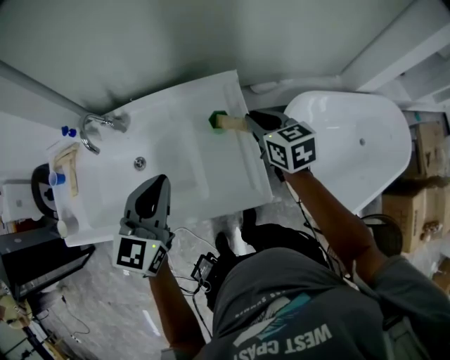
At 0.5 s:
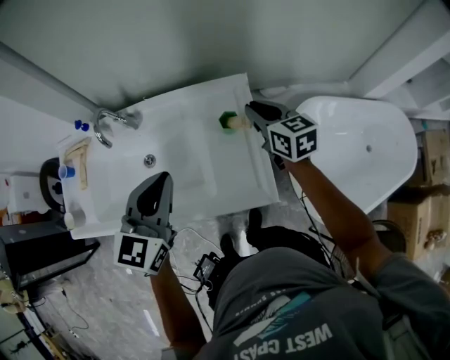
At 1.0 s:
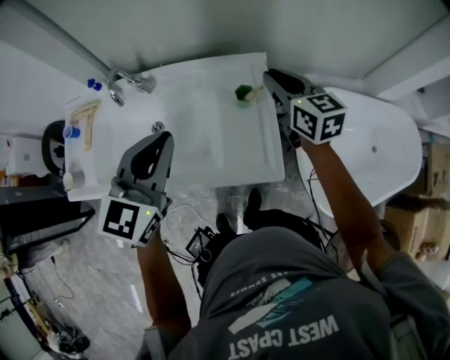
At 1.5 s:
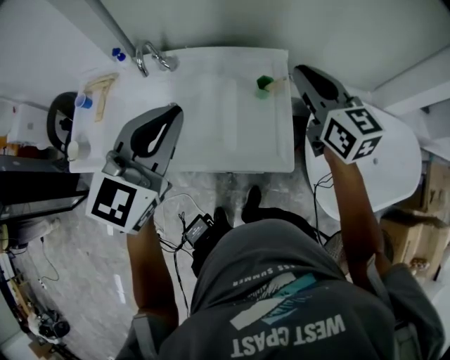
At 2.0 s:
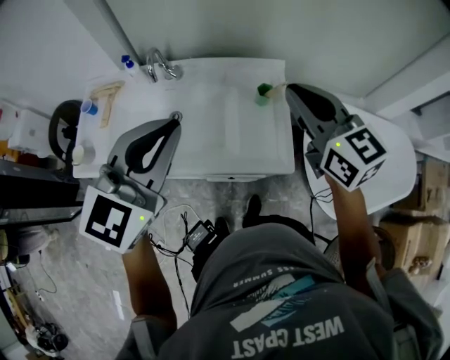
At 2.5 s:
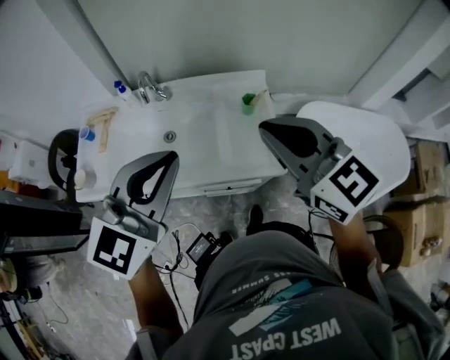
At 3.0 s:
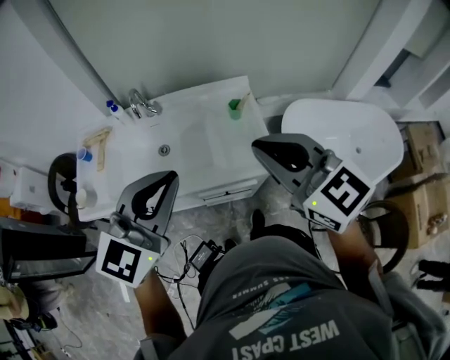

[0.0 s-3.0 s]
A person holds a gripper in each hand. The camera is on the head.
0.0 to 1.5 s: The left gripper shifts some 10 cm upward and backward. Meanwhile the right gripper goes some 15 cm upward, and turns by approximately 20 degrees.
1.5 to 3.0 s: The left gripper goes about 15 cm backward; the right gripper shifts about 25 cm backward.

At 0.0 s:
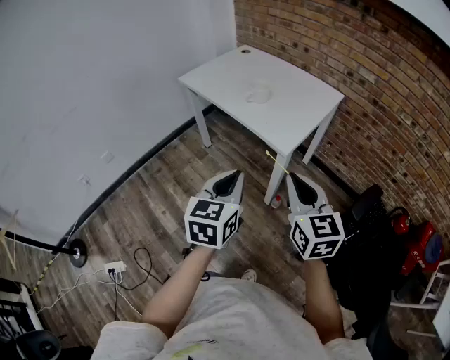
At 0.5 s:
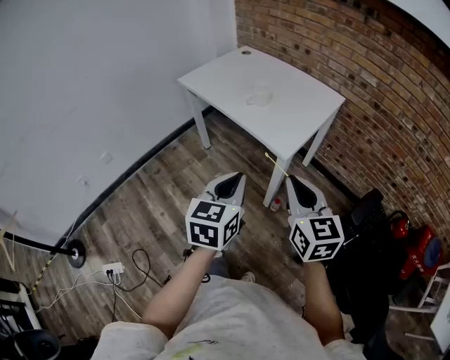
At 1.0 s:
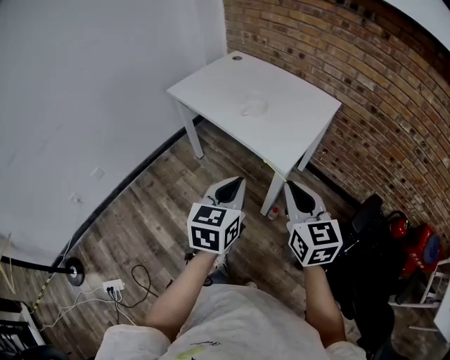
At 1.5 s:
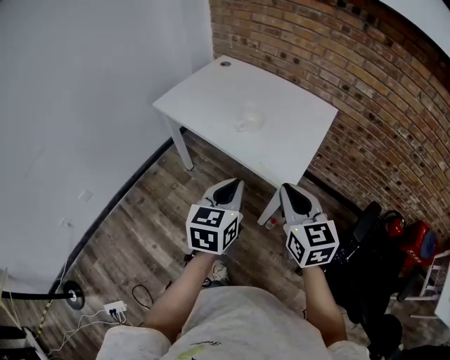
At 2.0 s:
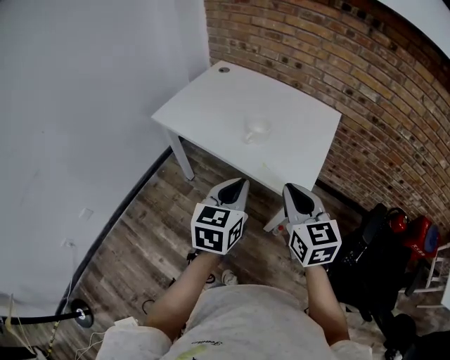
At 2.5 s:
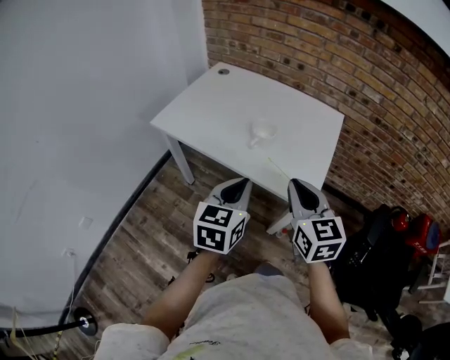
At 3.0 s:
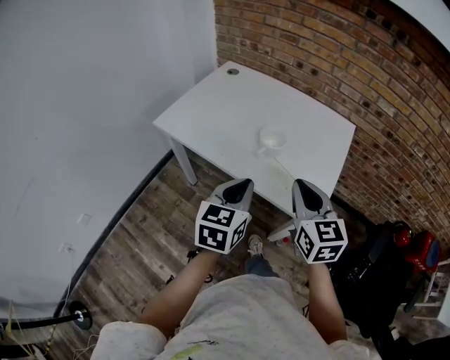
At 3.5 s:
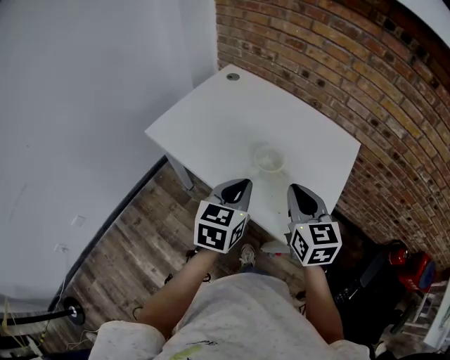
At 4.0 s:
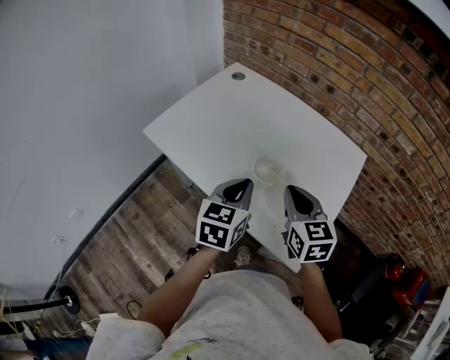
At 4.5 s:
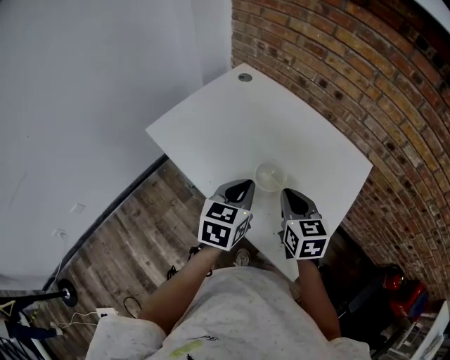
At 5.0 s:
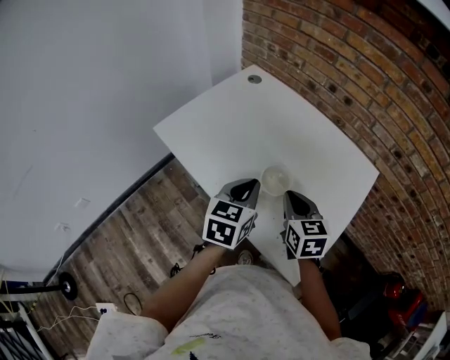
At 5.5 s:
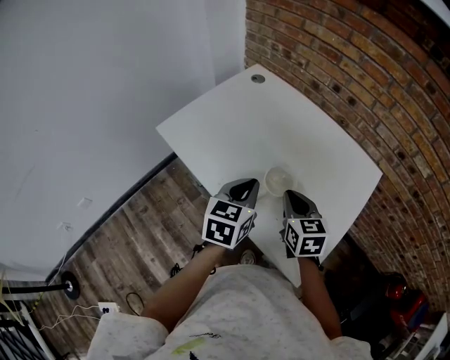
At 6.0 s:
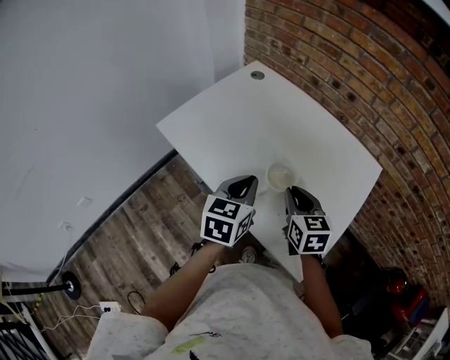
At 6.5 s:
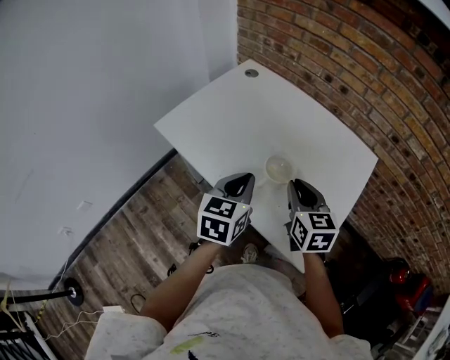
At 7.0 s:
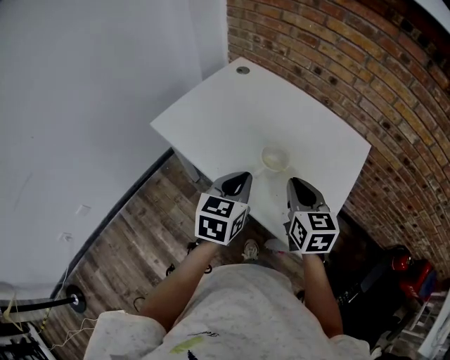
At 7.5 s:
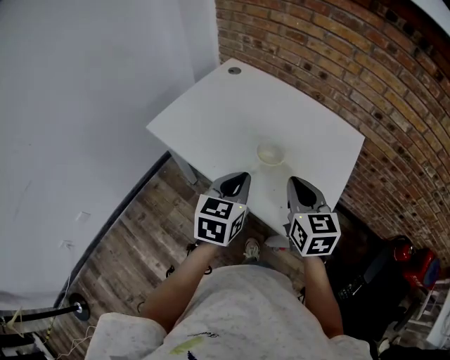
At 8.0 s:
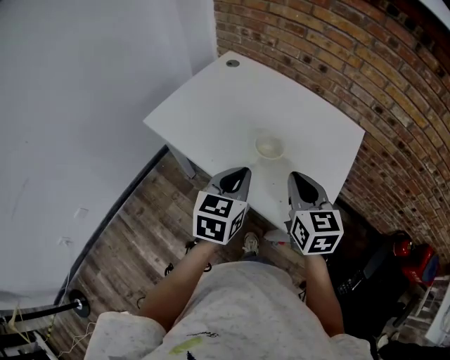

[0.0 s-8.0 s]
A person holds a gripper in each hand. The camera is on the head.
0.0 to 2.0 s: The right gripper moves forward and to the left, some 25 cm; the left gripper heads forward, covering about 25 cm.
2.0 to 4.0 s: The two grippers go roughly 25 cm forward.
4.0 to 6.0 s: The right gripper travels downward by some 5 cm.
6.0 to 8.0 s: The left gripper heads backward, covering roughly 5 cm. The right gripper moves backward and upward, some 10 cm.

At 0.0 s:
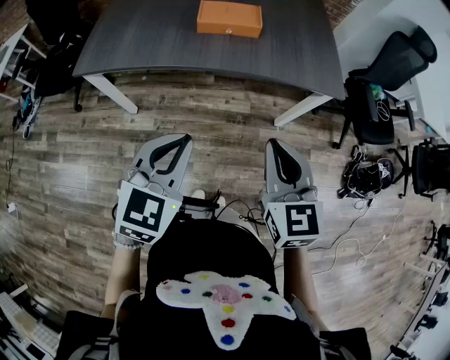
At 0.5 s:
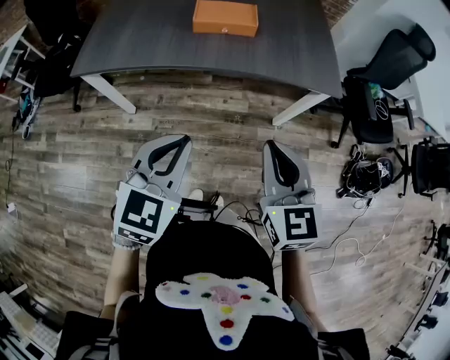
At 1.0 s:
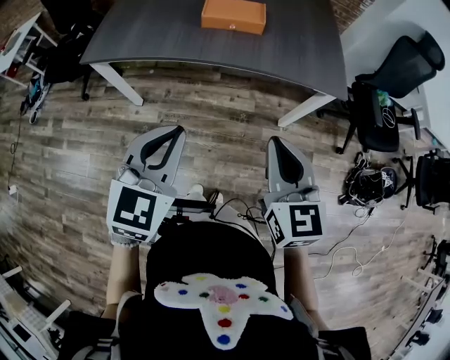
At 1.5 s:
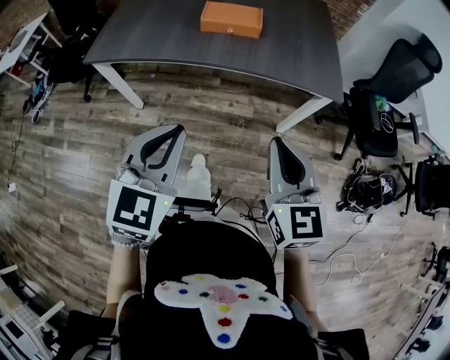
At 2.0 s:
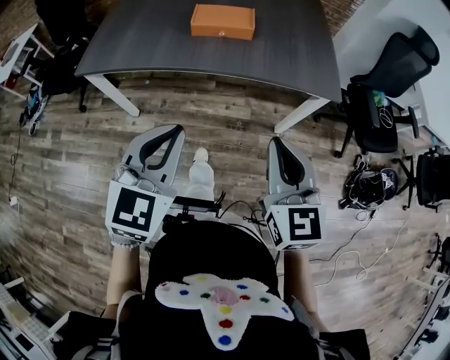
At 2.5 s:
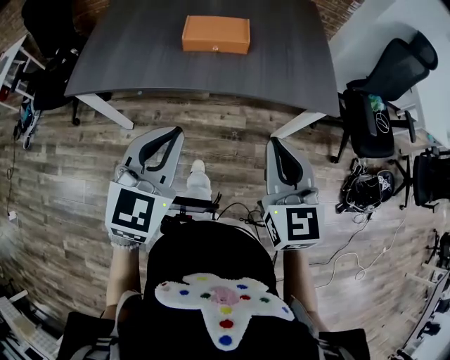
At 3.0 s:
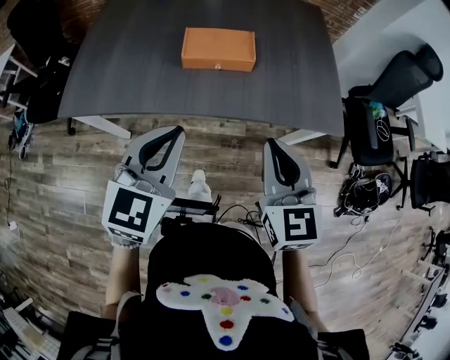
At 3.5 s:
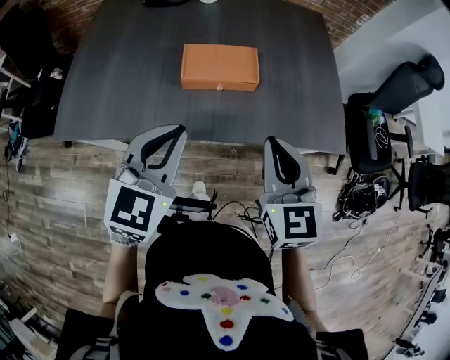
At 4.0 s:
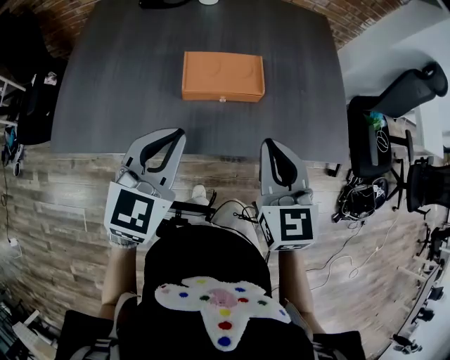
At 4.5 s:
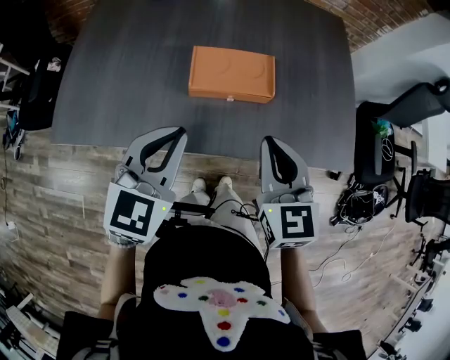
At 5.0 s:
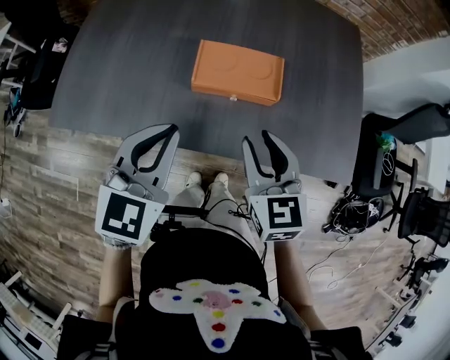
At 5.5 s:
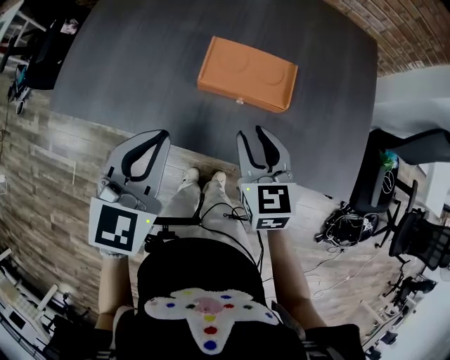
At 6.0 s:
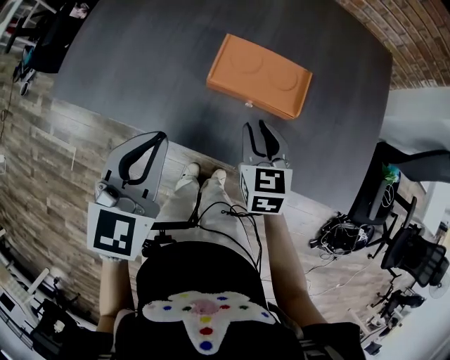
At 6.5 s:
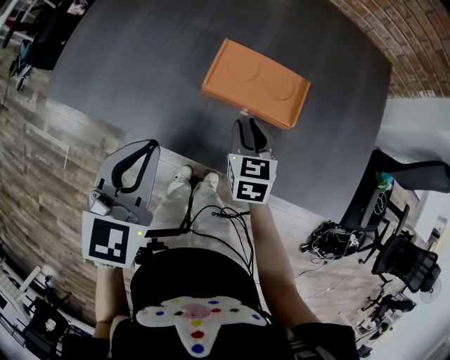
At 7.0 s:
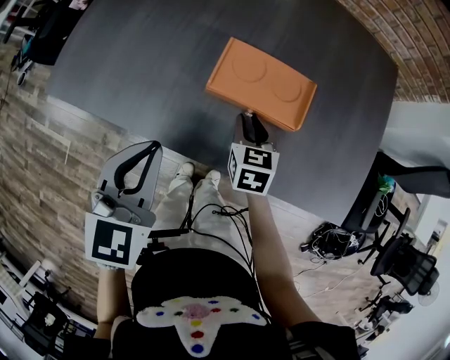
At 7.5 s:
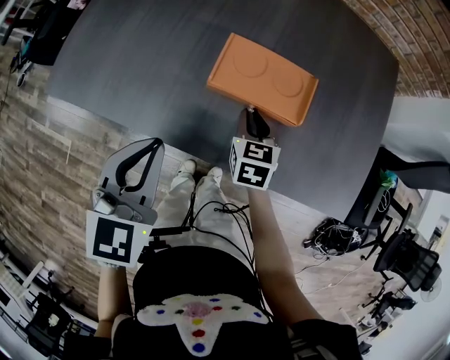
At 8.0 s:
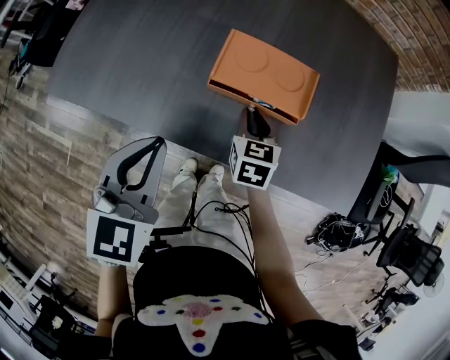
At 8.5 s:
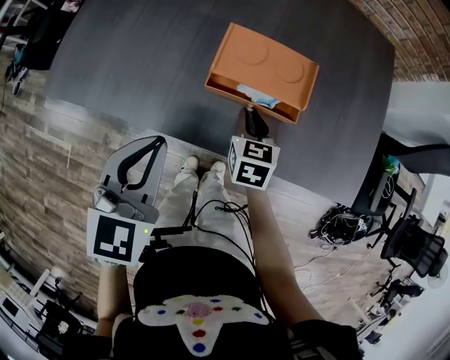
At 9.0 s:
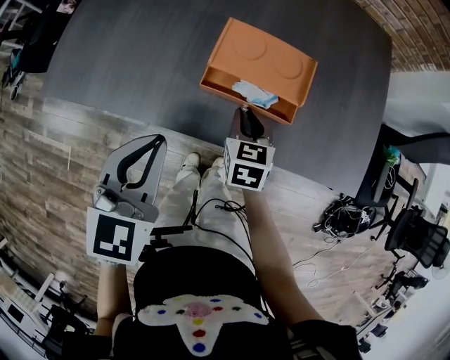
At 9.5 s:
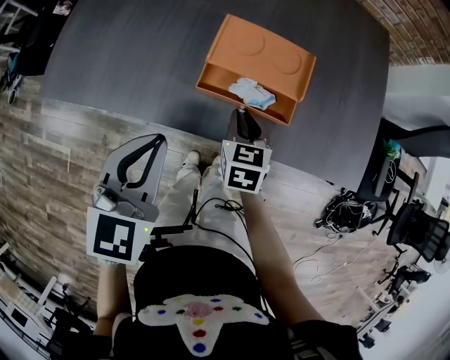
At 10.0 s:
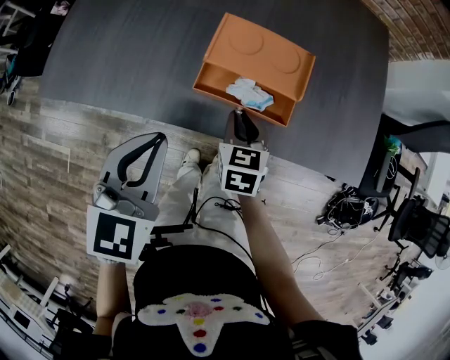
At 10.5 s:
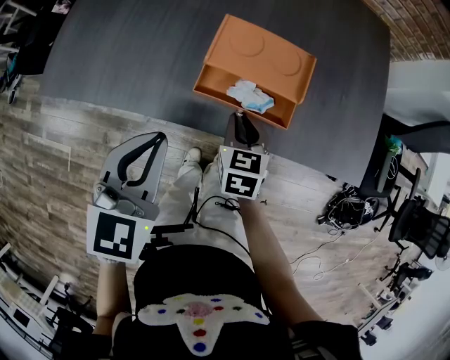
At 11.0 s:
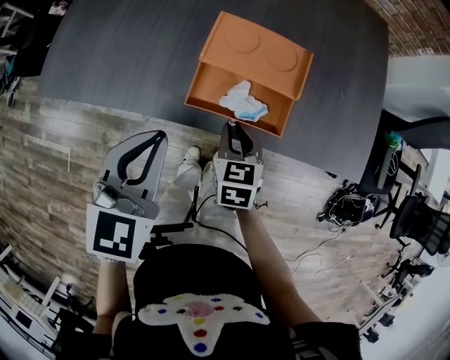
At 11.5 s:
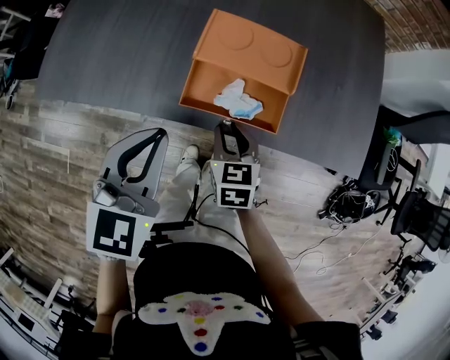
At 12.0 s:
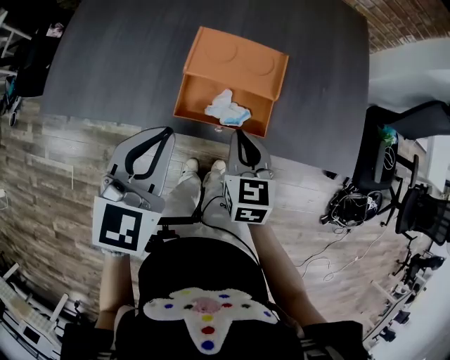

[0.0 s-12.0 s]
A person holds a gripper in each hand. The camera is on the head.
0.0 to 2.0 s: The right gripper is displaced to the right by some 5 cm, while the left gripper changes place by some 5 cm.
2.0 to 4.0 s: Both grippers move forward, roughly 35 cm.
4.0 to 6.0 s: The left gripper moves roughly 5 cm, and changes its angle by some 20 degrees, while the right gripper moves downward and forward, about 20 cm, swivels about 20 degrees, and opens up.
6.0 to 8.0 s: The right gripper travels downward by roughly 5 cm.
8.0 to 10.0 s: The right gripper moves backward, roughly 10 cm.
10.0 to 12.0 s: The left gripper ends up roughly 5 cm from where it was. The right gripper travels upward by about 10 cm.

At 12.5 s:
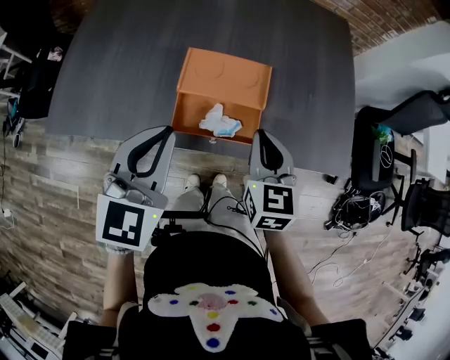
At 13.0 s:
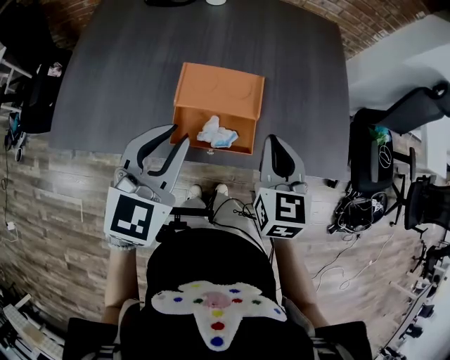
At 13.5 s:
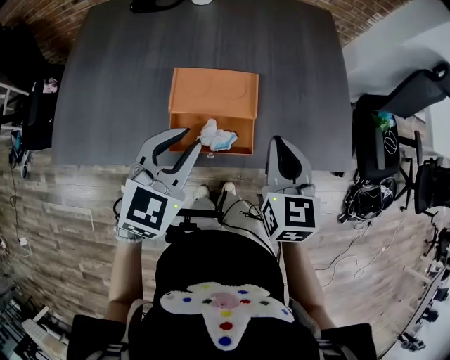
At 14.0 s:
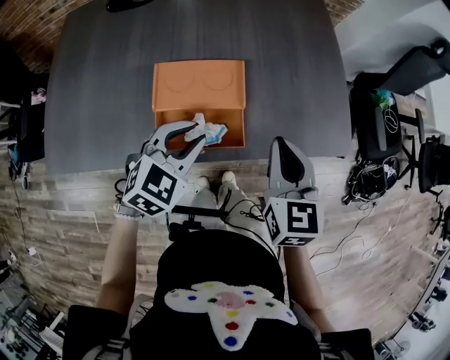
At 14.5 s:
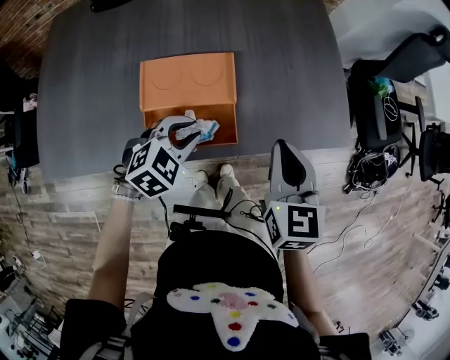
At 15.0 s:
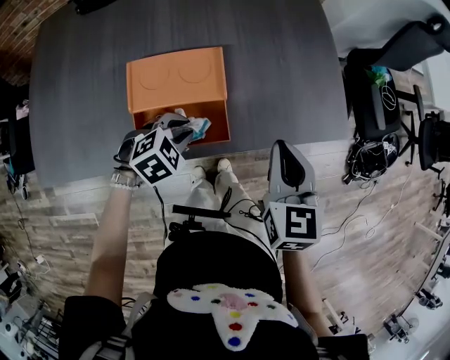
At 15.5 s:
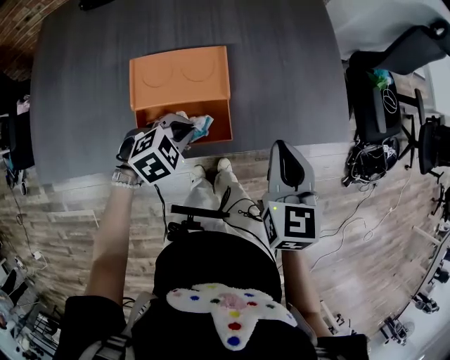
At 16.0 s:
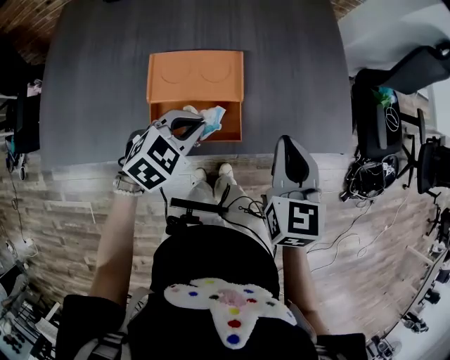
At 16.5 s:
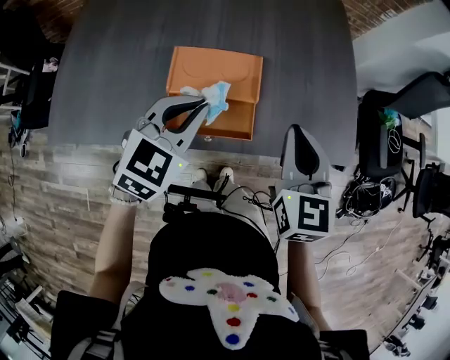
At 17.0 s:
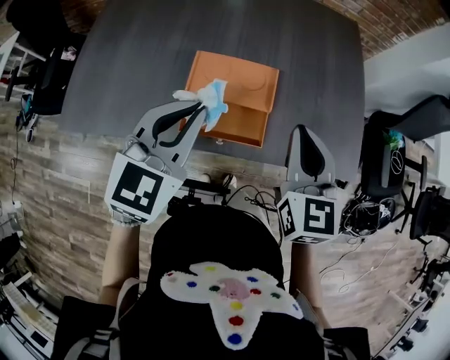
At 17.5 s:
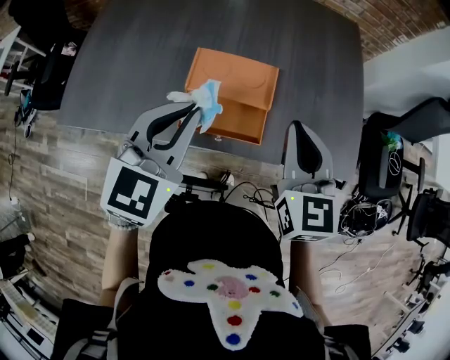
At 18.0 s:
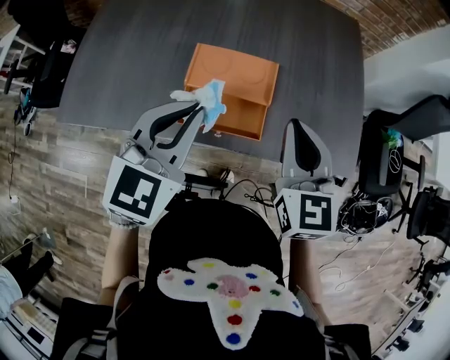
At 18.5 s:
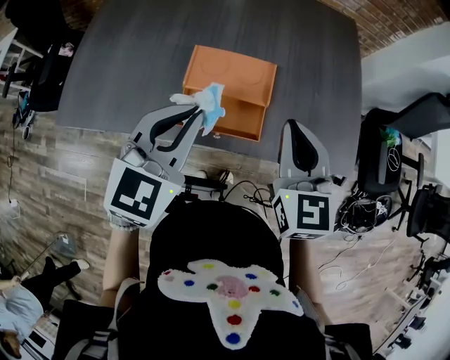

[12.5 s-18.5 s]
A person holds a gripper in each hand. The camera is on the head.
12.5 to 14.5 s: The left gripper heads downward, covering roughly 20 cm, and tilts its fingers about 30 degrees downward; the right gripper changes place by approximately 10 cm.
14.5 to 16.5 s: The right gripper travels upward by approximately 5 cm; the left gripper moves upward, approximately 15 cm, and changes its angle by roughly 30 degrees.
16.5 to 18.5 s: The left gripper shifts roughly 10 cm upward and backward.
